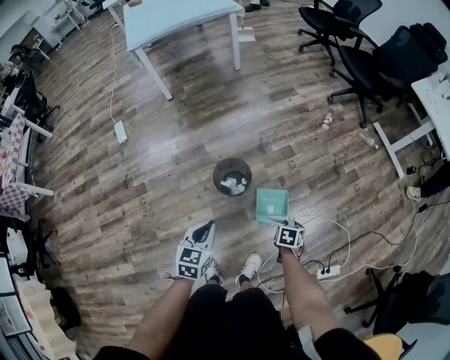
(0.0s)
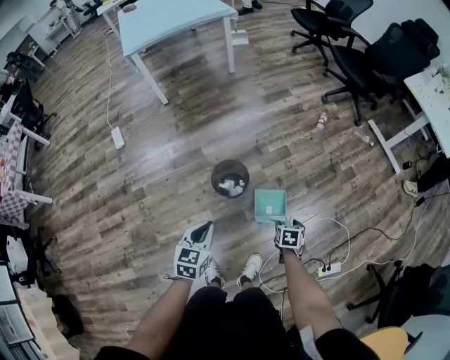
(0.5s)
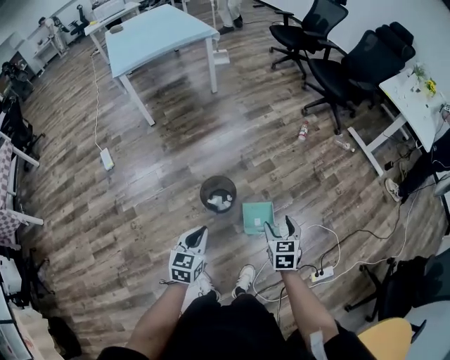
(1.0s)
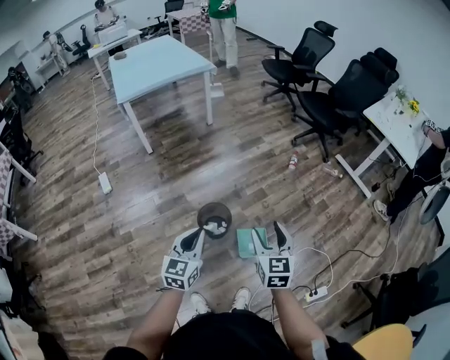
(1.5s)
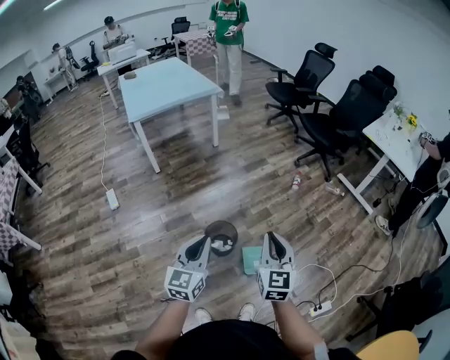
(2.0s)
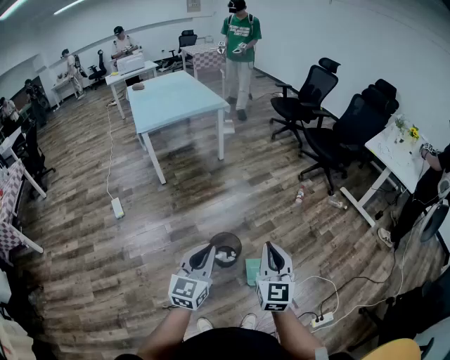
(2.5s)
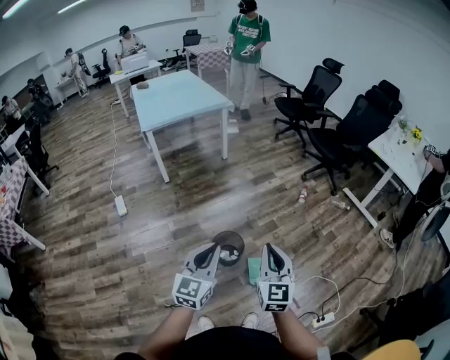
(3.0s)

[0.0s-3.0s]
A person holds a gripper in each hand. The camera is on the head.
0.0s to 1.5s: The left gripper travels upward by approximately 15 cm, and turns by approximately 20 degrees. The right gripper is displaced upward by about 35 cm, points its fingers some 50 degrees further upward, and opens its fingers.
1.5s to 3.0s: The left gripper travels upward by some 10 cm. Meanwhile the right gripper travels upward, backward and to the left by approximately 10 cm, and closes up.

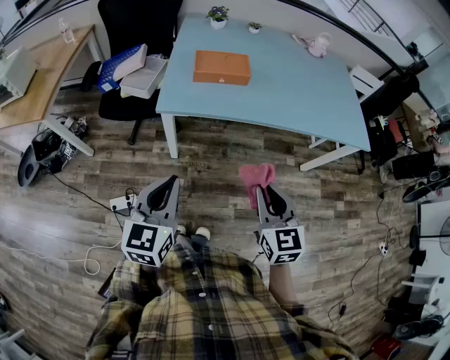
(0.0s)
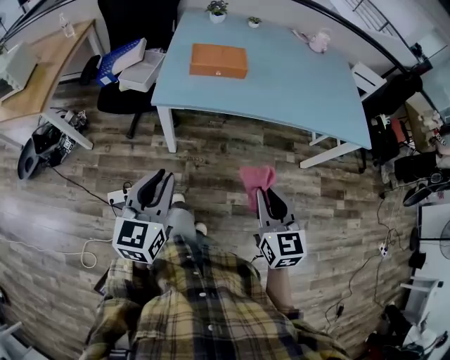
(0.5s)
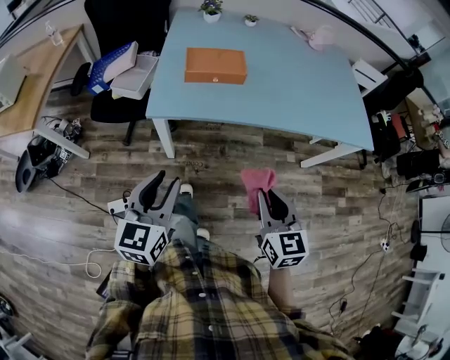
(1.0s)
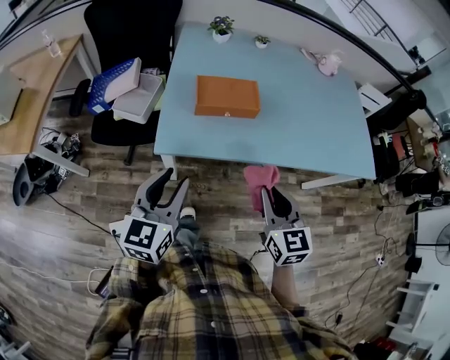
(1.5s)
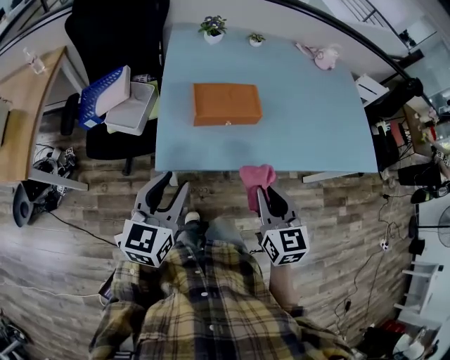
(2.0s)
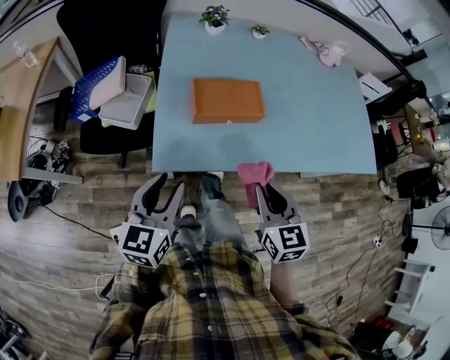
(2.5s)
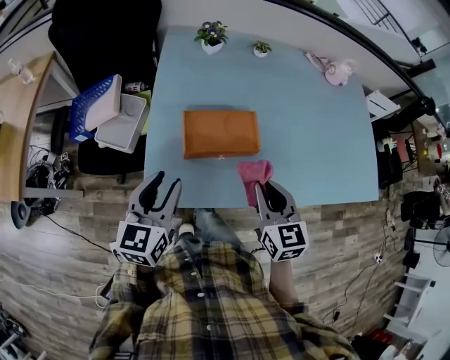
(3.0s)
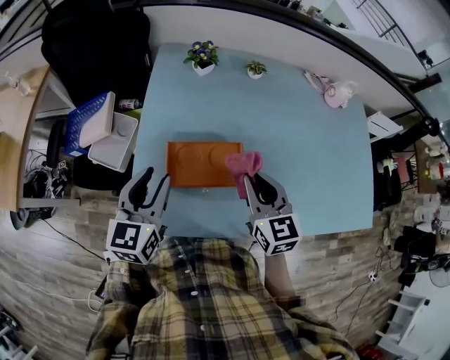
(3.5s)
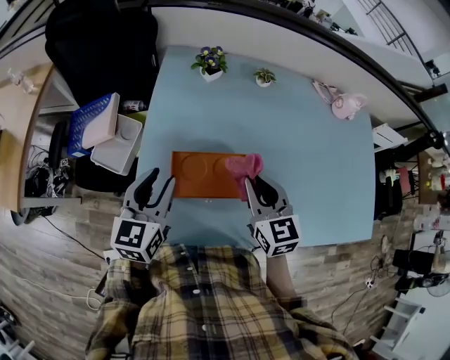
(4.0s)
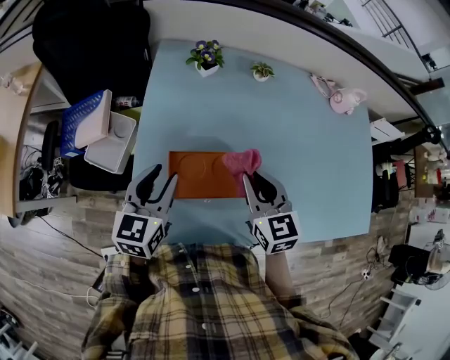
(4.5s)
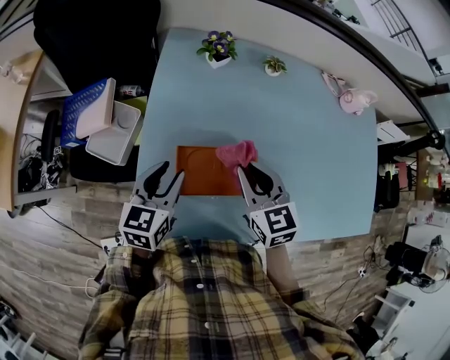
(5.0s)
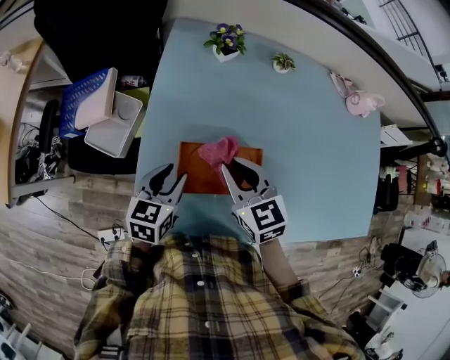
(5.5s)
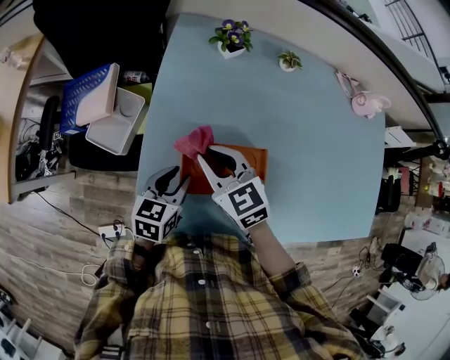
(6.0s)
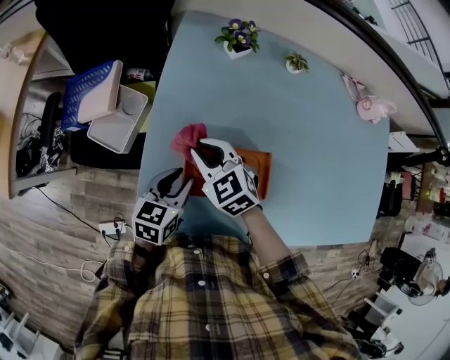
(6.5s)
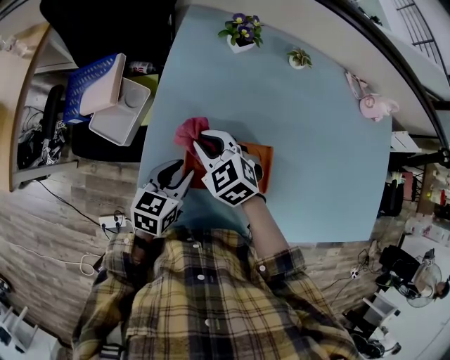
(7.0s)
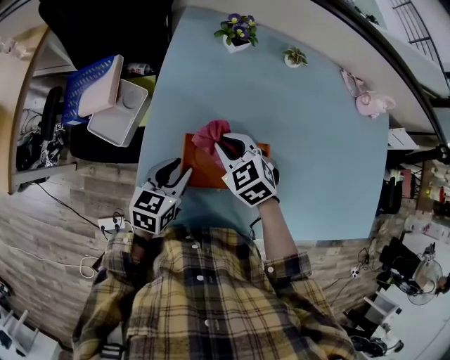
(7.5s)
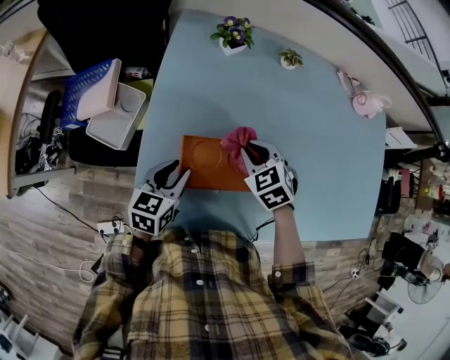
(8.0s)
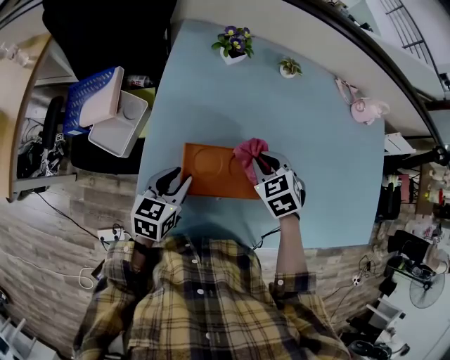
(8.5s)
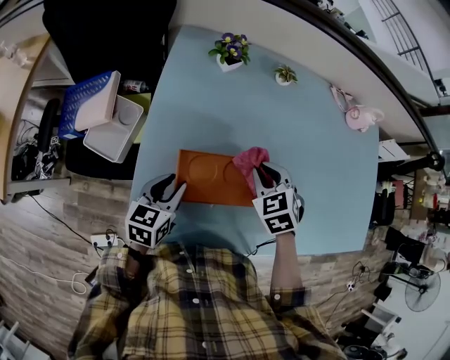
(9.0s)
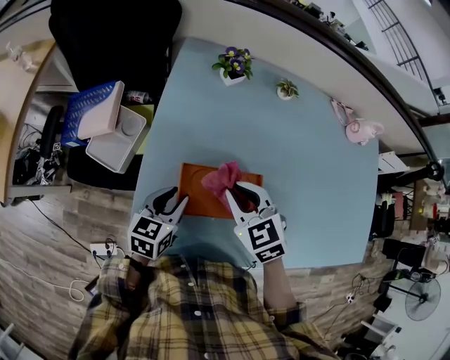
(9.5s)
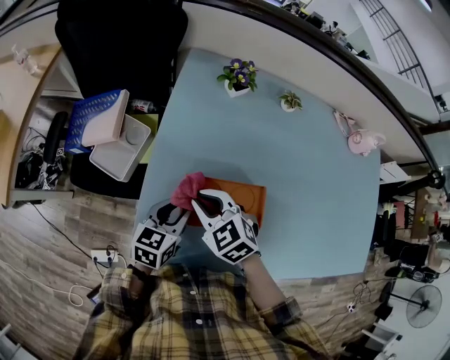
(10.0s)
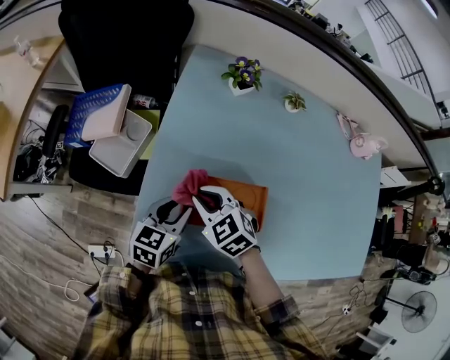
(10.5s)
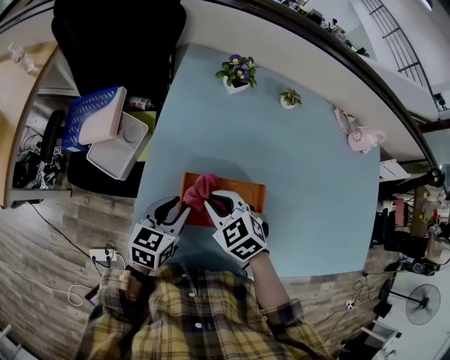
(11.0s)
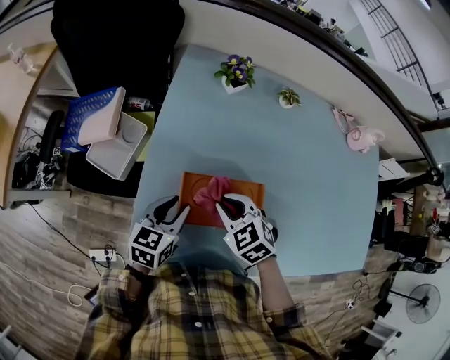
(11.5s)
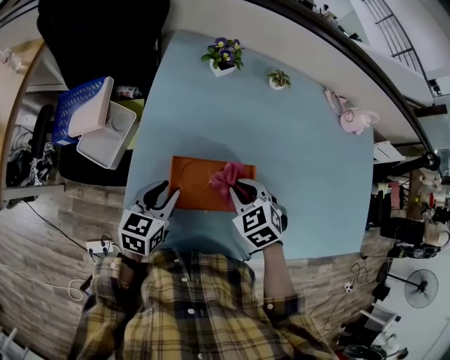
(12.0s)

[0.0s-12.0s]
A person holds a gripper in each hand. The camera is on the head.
0.0s to 2.0s: The grippers both shift forward by some 25 cm. The left gripper opens up.
2.0s to 4.0s: Both grippers move forward, roughly 30 cm.
4.0s to 6.0s: The left gripper moves downward, approximately 15 cm, and turns by roughly 20 degrees, while the right gripper heads to the left, covering some 15 cm, and turns by approximately 20 degrees.
6.0s to 8.0s: The right gripper is displaced to the right and downward by about 15 cm, and swivels approximately 30 degrees.
8.0s to 10.0s: The right gripper goes some 15 cm to the left.
10.0s to 12.0s: The right gripper goes roughly 15 cm to the right.

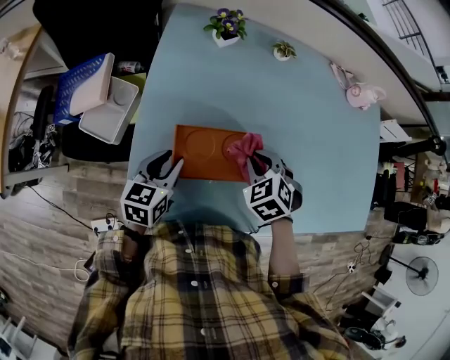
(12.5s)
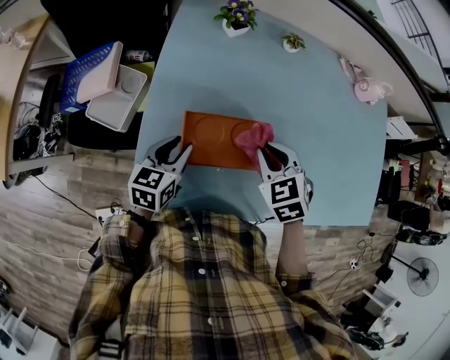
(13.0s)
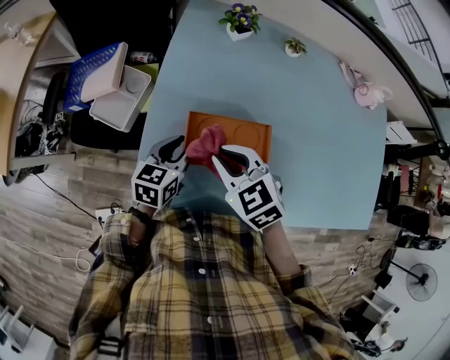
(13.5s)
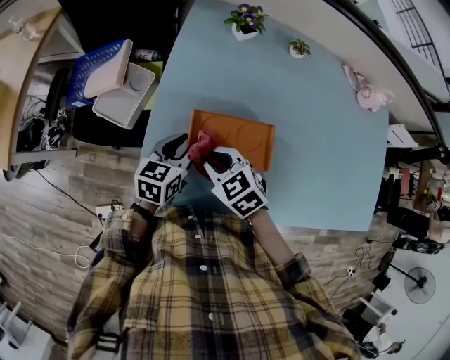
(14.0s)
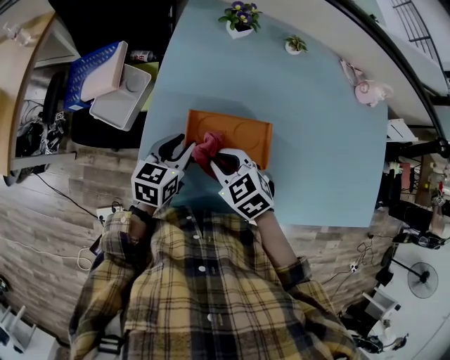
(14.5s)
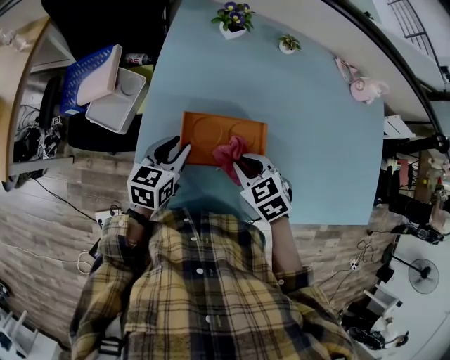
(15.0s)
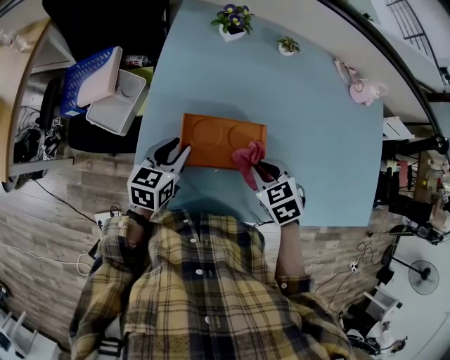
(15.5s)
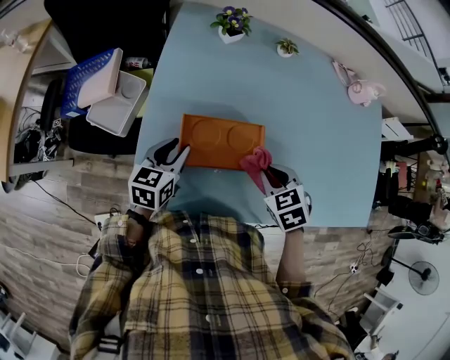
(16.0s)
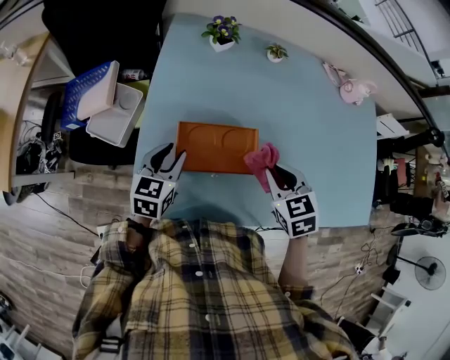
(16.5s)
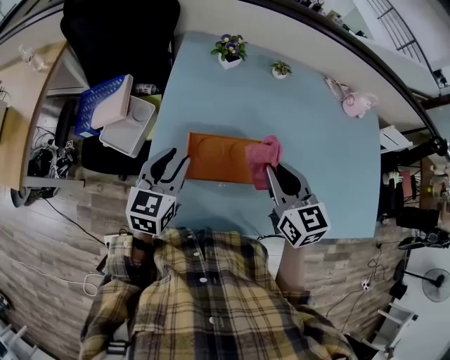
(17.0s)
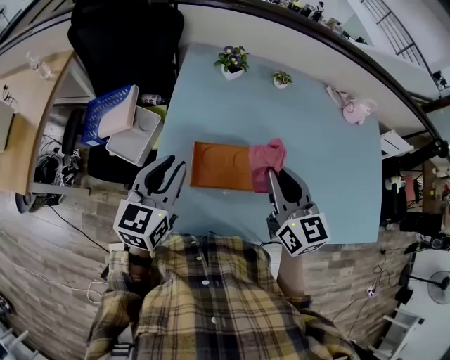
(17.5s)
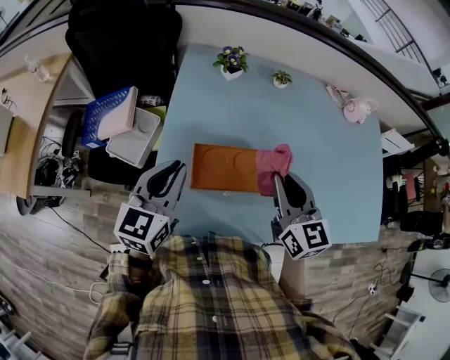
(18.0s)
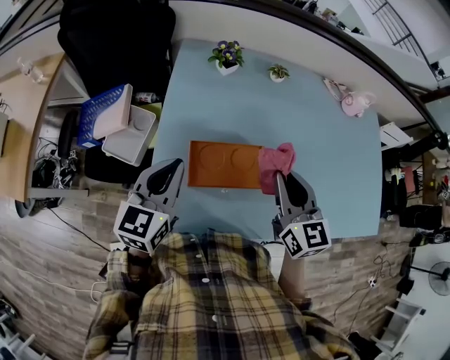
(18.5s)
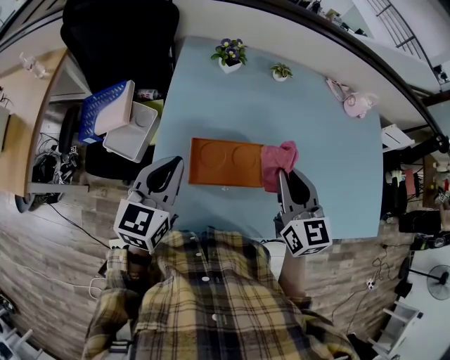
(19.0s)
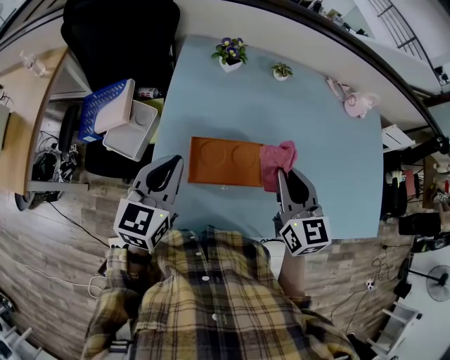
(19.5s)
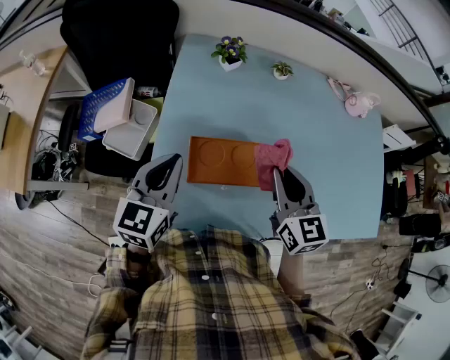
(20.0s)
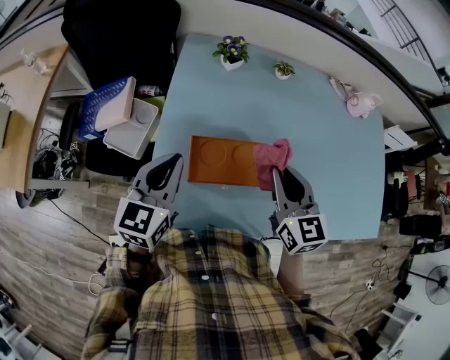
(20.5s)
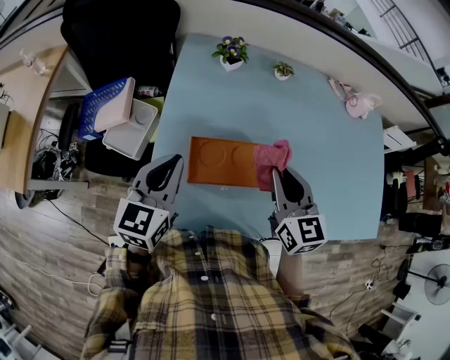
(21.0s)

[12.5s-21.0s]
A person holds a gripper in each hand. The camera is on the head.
12.5s to 14.5s: The right gripper shifts some 15 cm to the left, and swivels about 30 degrees.
14.5s to 16.5s: The right gripper travels to the right by about 15 cm, and changes its angle by roughly 30 degrees.
16.5s to 19.0s: Both grippers move upward, about 15 cm. The right gripper points its fingers roughly 30 degrees further upward. The left gripper closes its fingers.
19.0s to 21.0s: There are only small adjustments of the grippers.

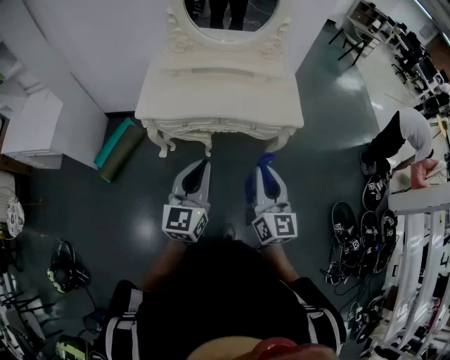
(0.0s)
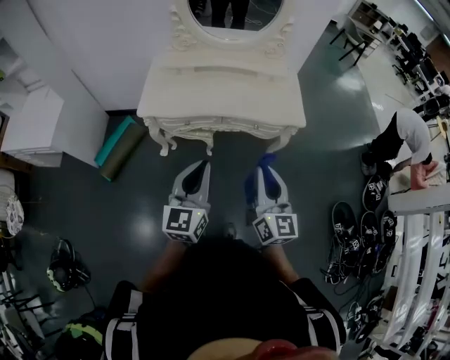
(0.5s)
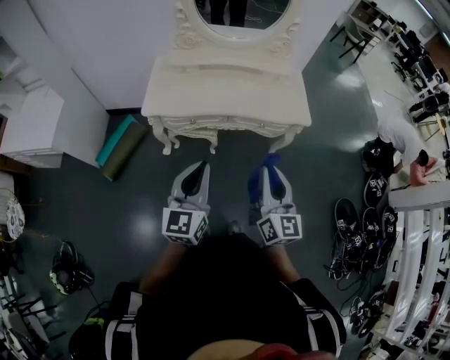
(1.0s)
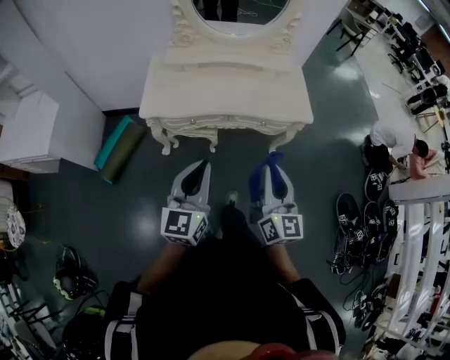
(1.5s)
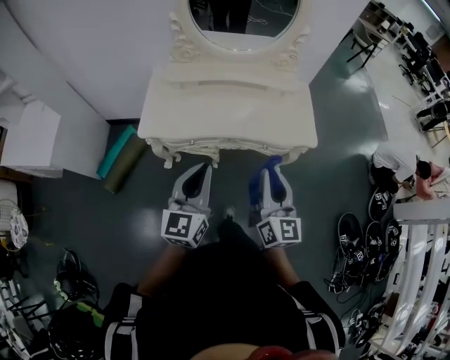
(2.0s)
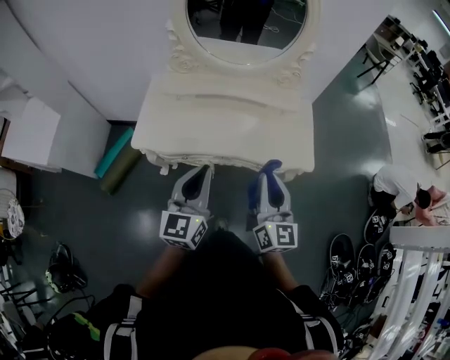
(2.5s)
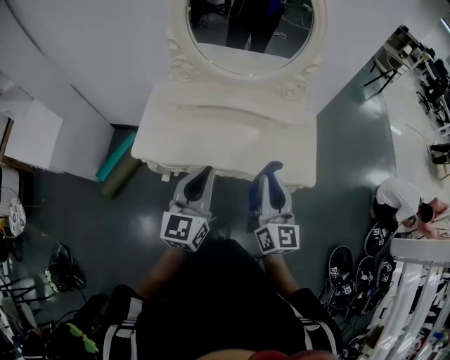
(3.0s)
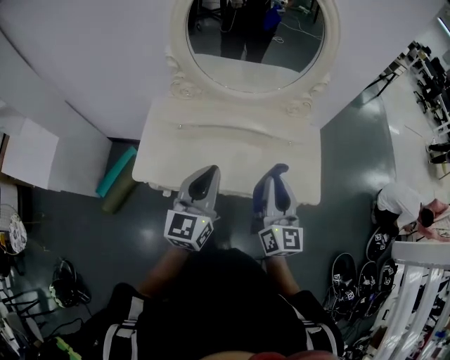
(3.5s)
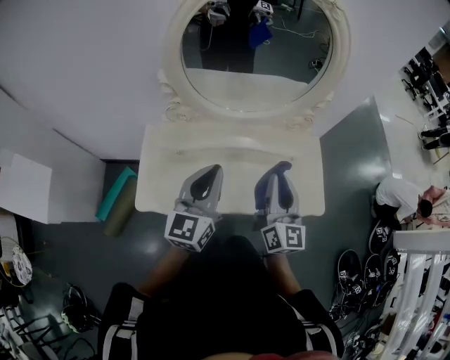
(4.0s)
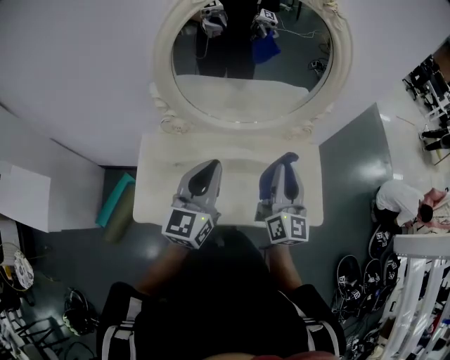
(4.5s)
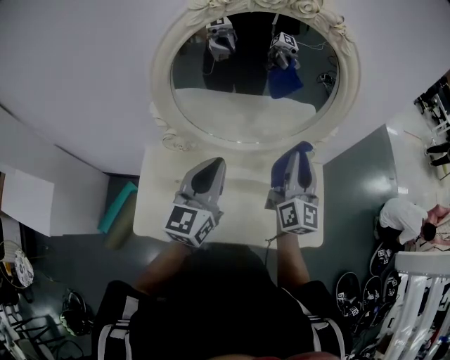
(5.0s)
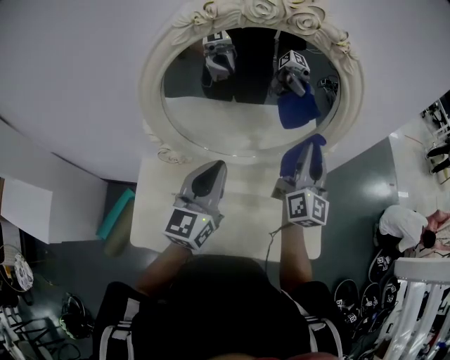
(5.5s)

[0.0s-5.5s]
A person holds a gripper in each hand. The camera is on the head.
0.0s to 2.0s: Both grippers travel together forward, some 15 cm.
2.0s to 3.5s: Both grippers move forward, about 25 cm.
3.5s to 5.5s: Both grippers travel together forward, approximately 30 cm. The right gripper rotates some 20 degrees.
